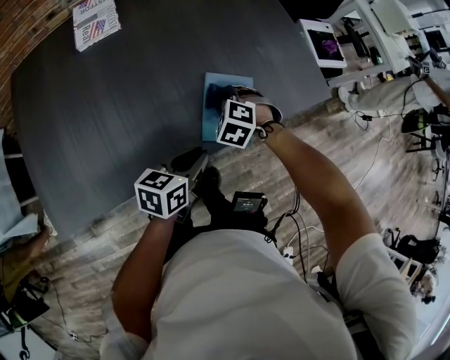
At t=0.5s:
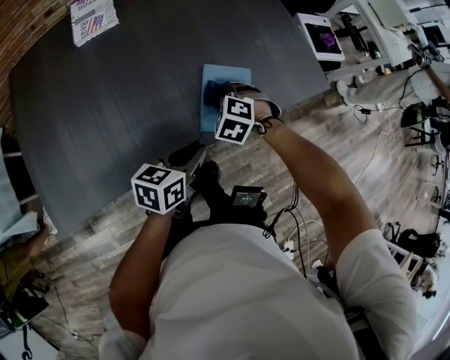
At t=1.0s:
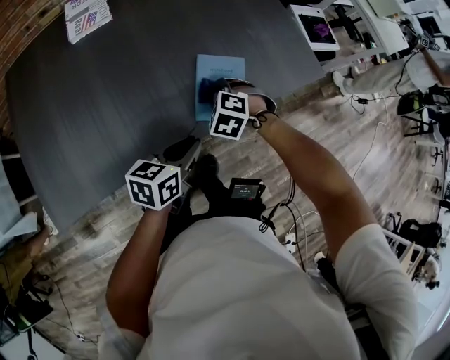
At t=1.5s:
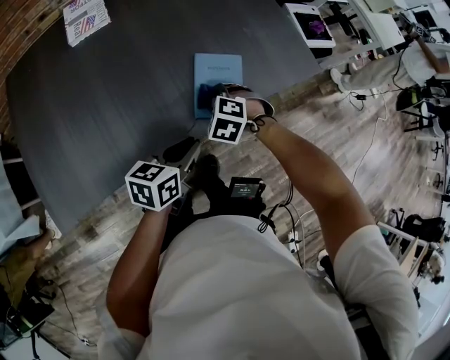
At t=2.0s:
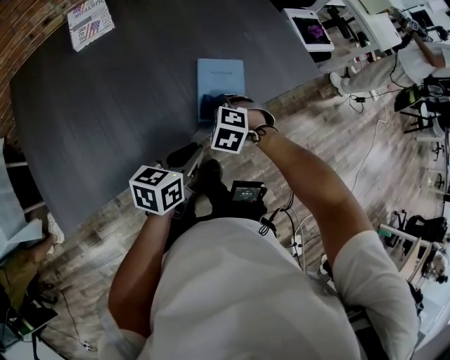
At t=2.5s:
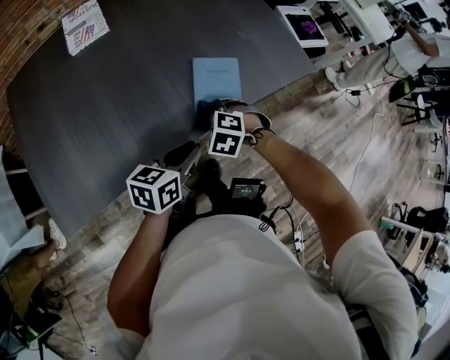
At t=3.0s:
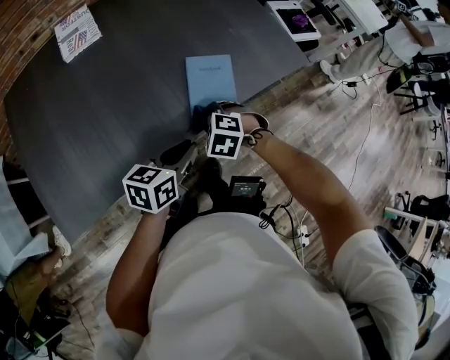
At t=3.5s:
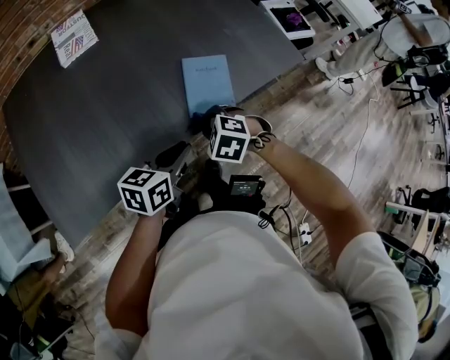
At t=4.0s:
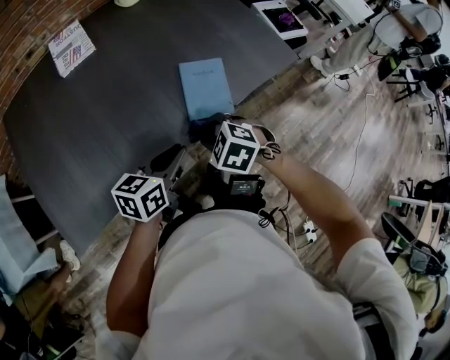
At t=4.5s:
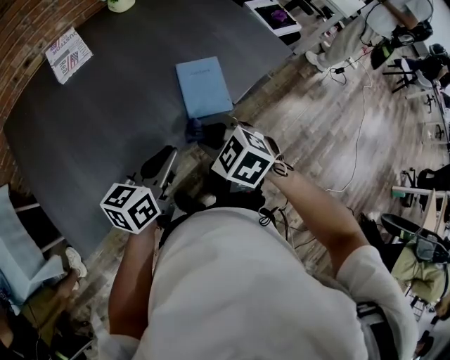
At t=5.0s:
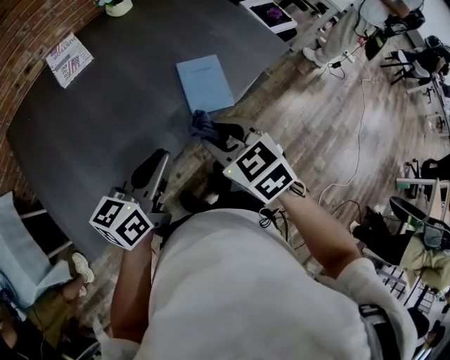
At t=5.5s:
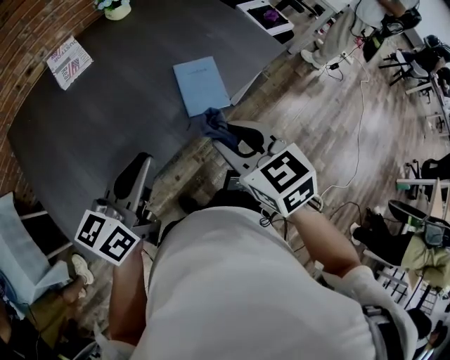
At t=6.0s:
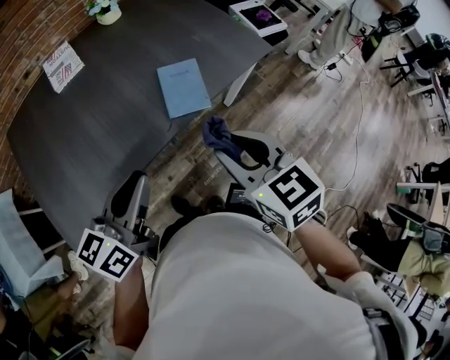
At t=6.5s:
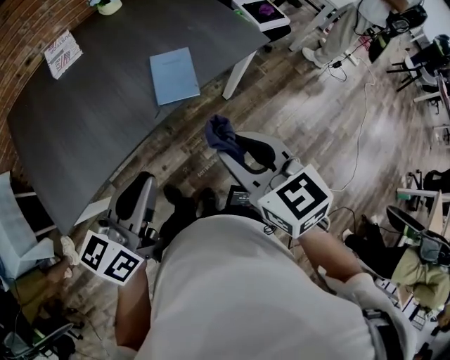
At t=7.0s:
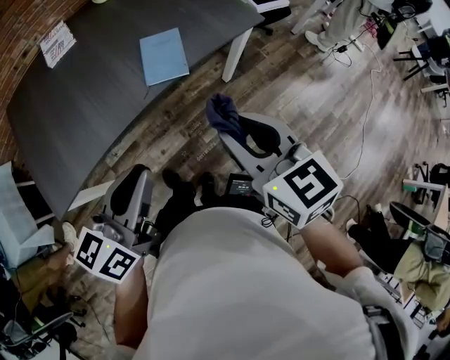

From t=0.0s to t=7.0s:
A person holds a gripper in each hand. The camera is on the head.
From t=0.0s to t=2.0s: The left gripper shifts by some 5 cm. The right gripper shifts about 10 cm backward.
From t=2.0s to t=3.5s: The right gripper moves backward, approximately 5 cm.
From t=3.5s to t=5.0s: The left gripper heads upward and to the left, covering some 15 cm. Meanwhile the right gripper is displaced upward by about 15 cm, and changes its angle by approximately 50 degrees.
From t=5.0s to t=7.0s: The right gripper shifts some 25 cm to the right, backward and upward, and swivels approximately 20 degrees. The left gripper moves backward and to the right, some 20 cm.

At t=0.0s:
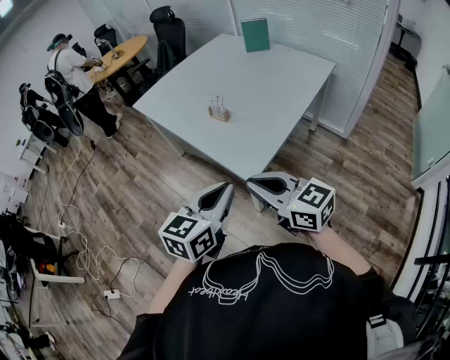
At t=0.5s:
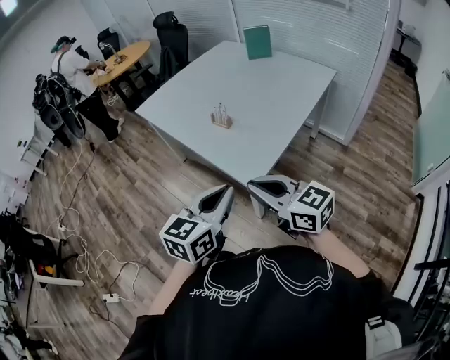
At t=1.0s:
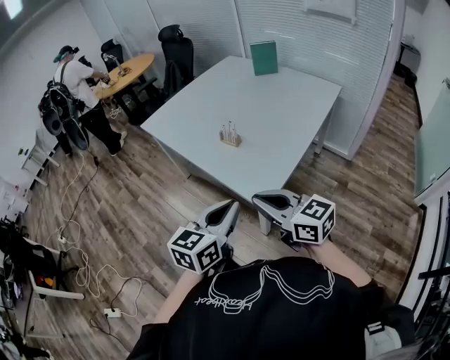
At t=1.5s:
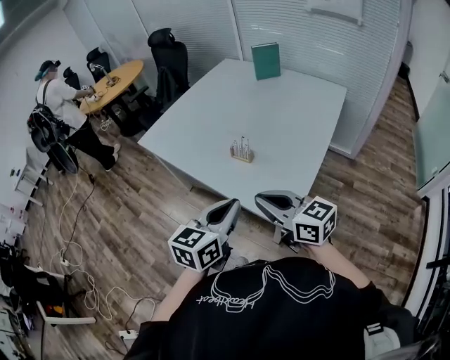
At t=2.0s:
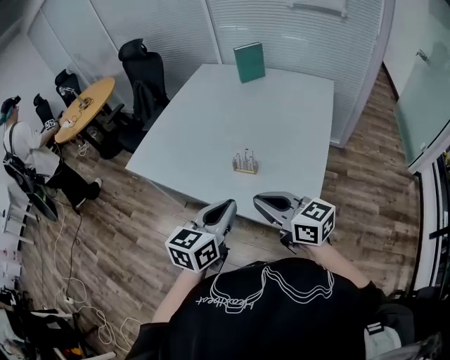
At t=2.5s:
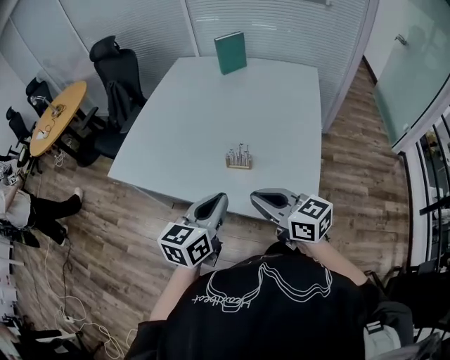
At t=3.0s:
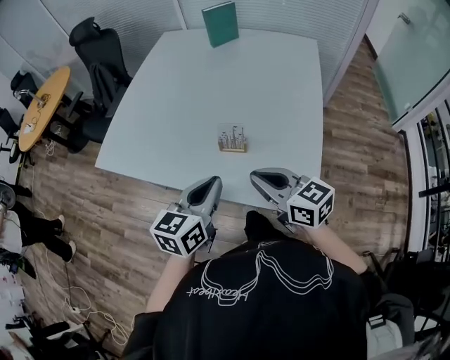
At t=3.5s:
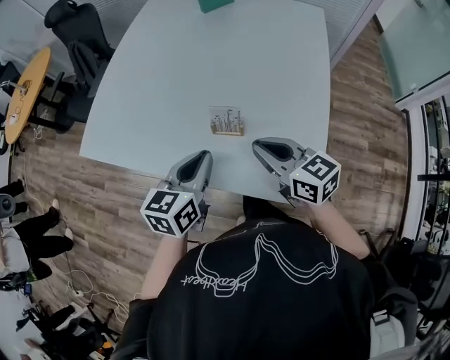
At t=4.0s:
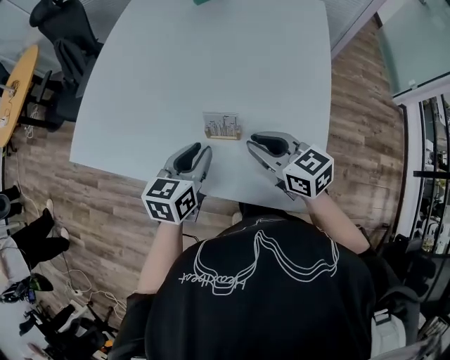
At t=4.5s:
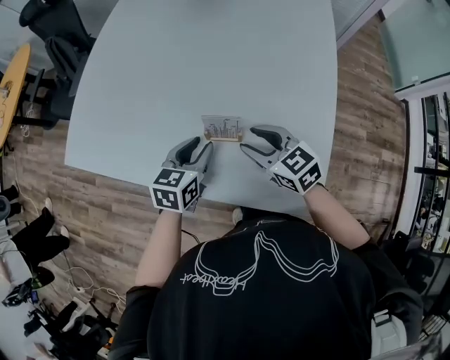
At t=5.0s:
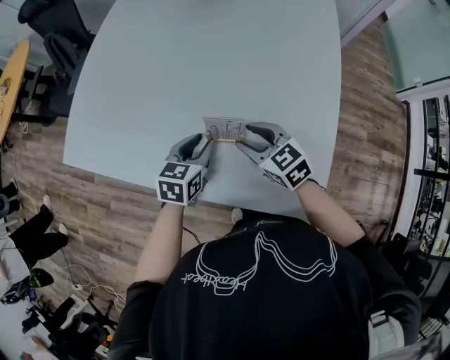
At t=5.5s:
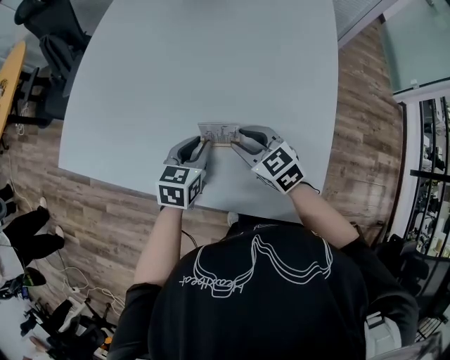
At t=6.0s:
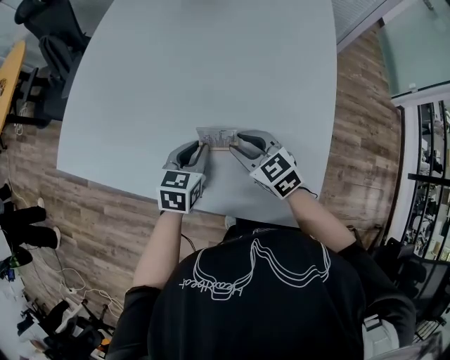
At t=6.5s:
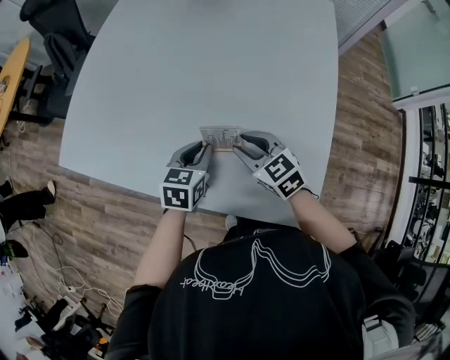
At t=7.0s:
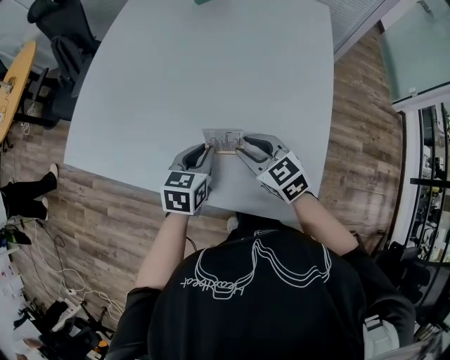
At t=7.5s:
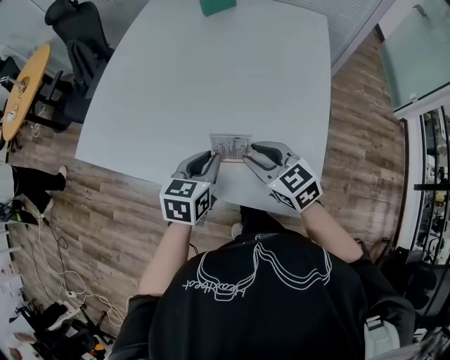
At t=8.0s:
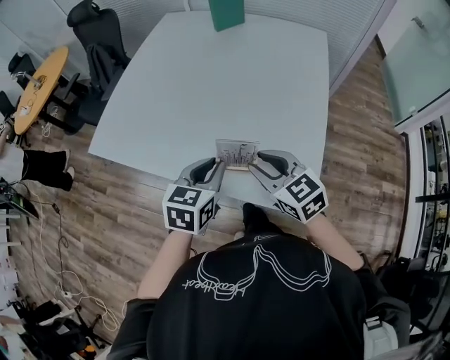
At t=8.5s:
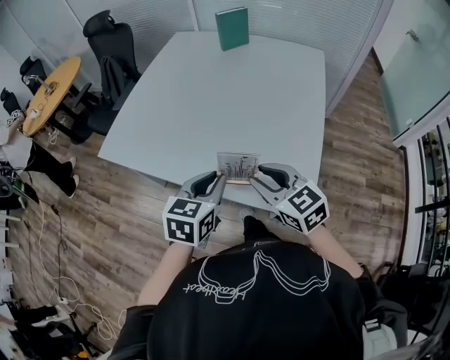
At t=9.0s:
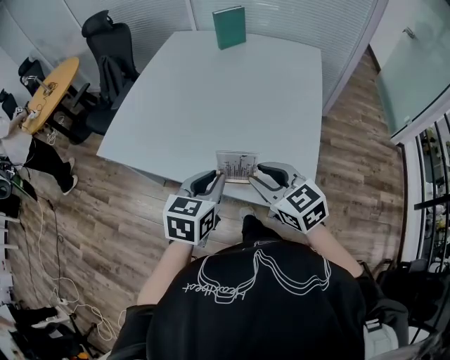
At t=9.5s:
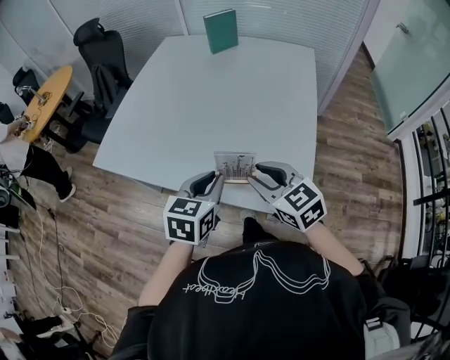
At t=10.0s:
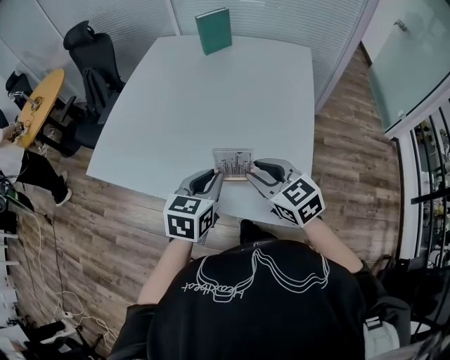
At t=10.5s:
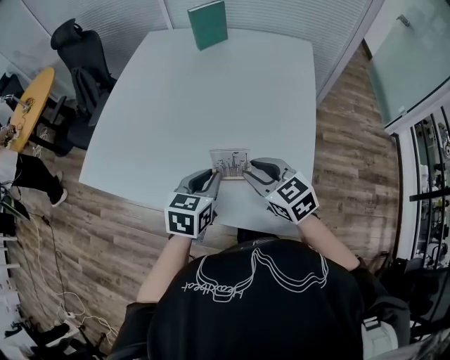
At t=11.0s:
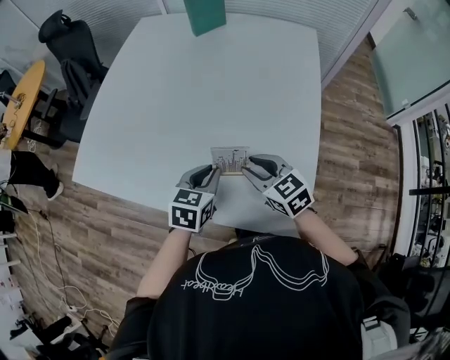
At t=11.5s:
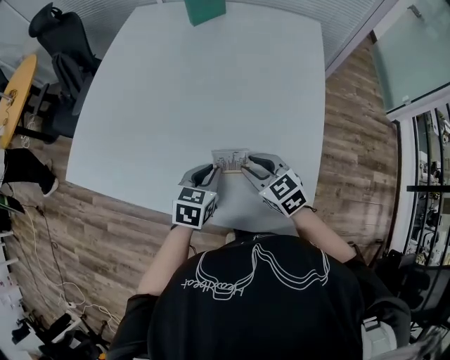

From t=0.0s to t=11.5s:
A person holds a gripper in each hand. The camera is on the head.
From t=0.0s to t=2.0s: Both grippers move forward and to the left, some 30 cm. The right gripper changes its angle by some 20 degrees.
From t=2.0s to t=4.0s: The two grippers go approximately 25 cm forward and downward. The right gripper rotates approximately 20 degrees.
From t=4.0s to t=6.0s: Both grippers travel together downward and forward, some 10 cm.
From t=6.0s to t=7.5s: Both grippers travel together upward and backward, approximately 10 cm.
From t=7.5s to t=9.5s: Both grippers move backward and upward, approximately 15 cm.
From t=9.5s to t=11.5s: The two grippers go about 20 cm downward and forward.

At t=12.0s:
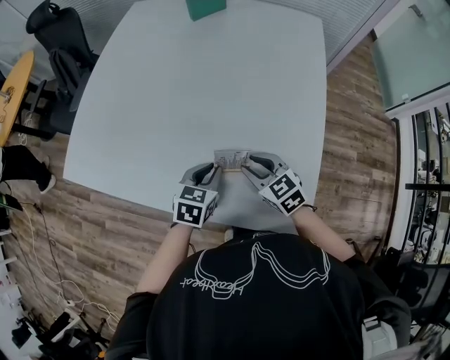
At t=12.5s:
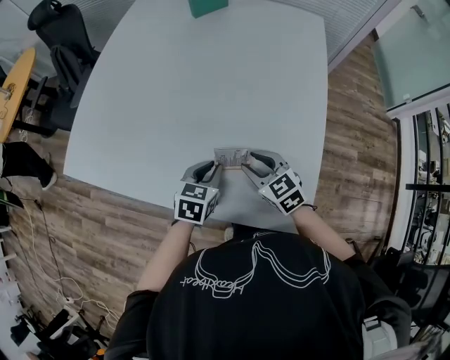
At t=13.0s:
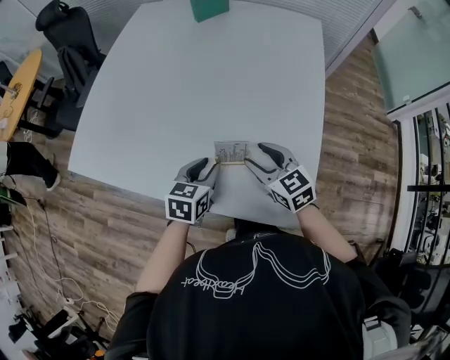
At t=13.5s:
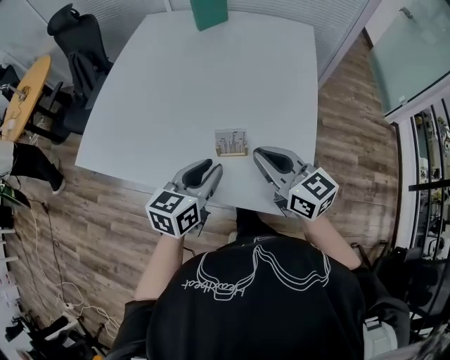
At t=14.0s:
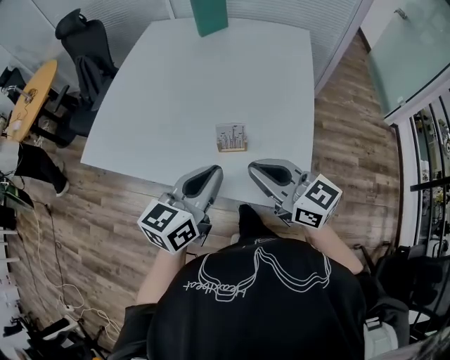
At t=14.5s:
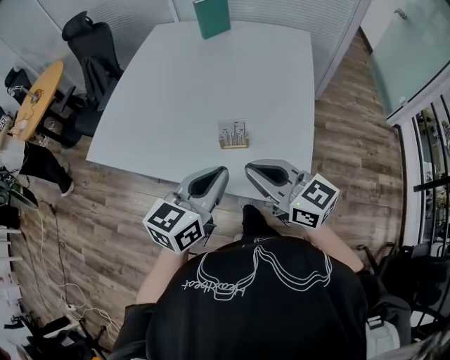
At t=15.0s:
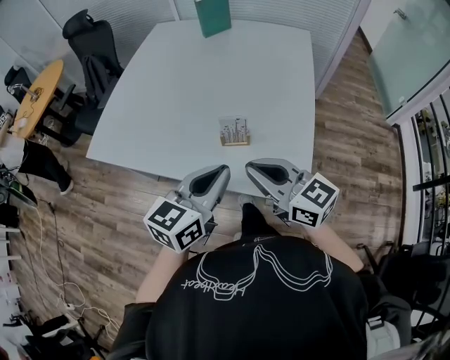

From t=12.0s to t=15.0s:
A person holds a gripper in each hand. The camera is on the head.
From t=12.0s to t=13.5s: Both grippers travel together upward and backward, about 15 cm. The left gripper changes its angle by about 20 degrees; the right gripper swivels roughly 30 degrees, and closes.
From t=13.5s to t=15.0s: The left gripper heads backward and upward, covering about 15 cm, and closes up. Meanwhile the right gripper travels backward by some 10 cm.

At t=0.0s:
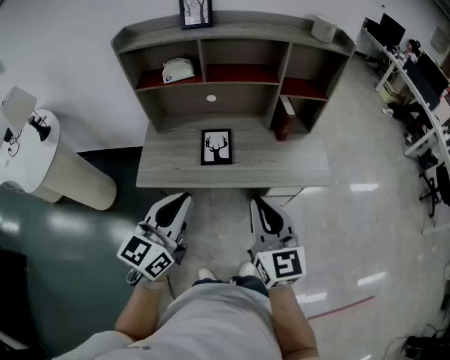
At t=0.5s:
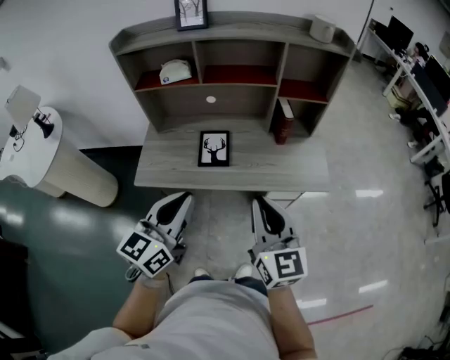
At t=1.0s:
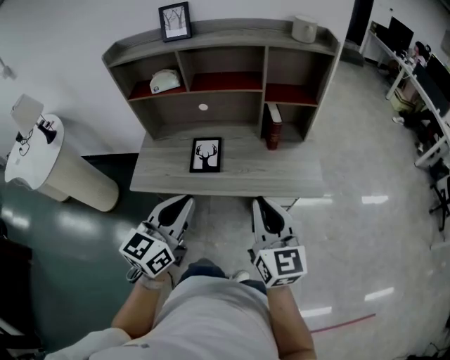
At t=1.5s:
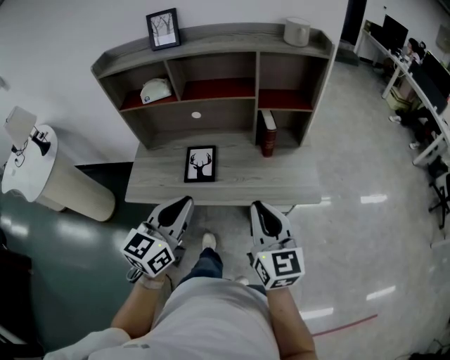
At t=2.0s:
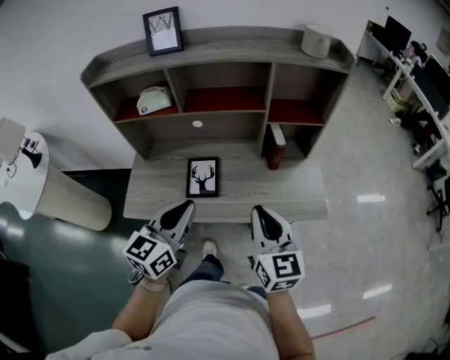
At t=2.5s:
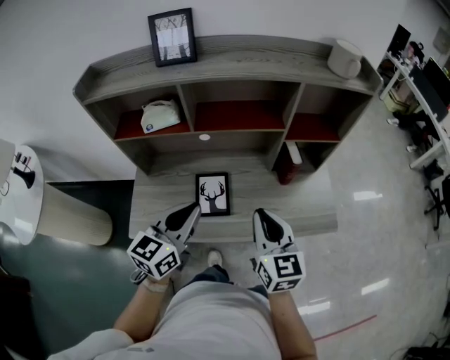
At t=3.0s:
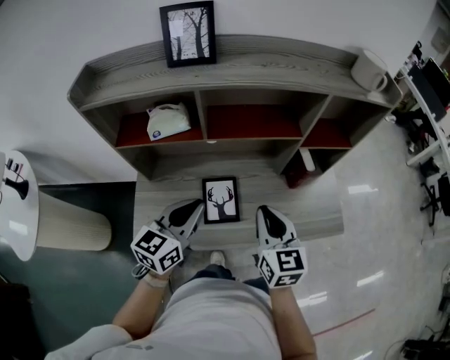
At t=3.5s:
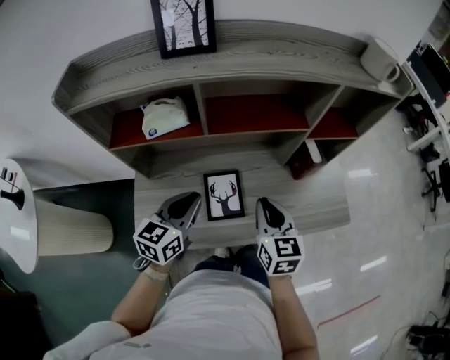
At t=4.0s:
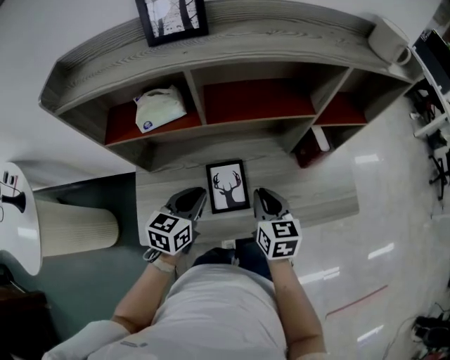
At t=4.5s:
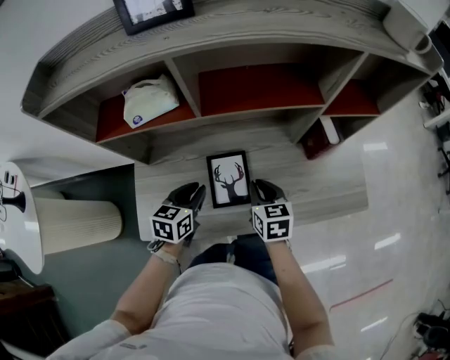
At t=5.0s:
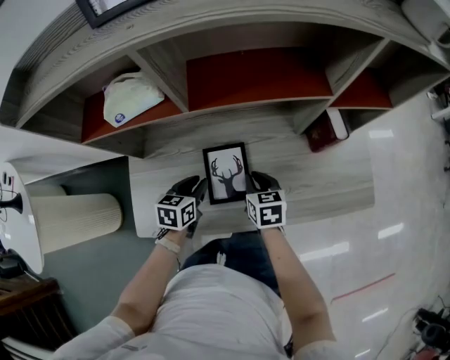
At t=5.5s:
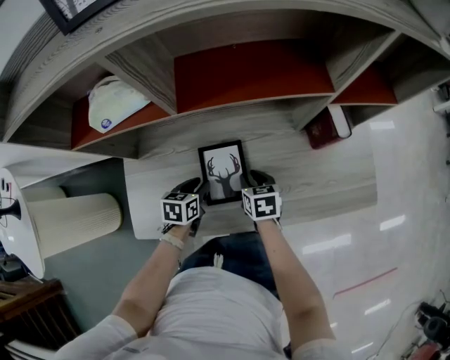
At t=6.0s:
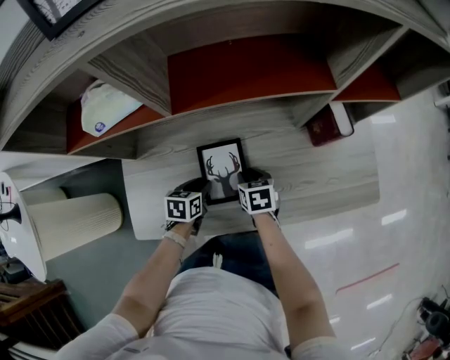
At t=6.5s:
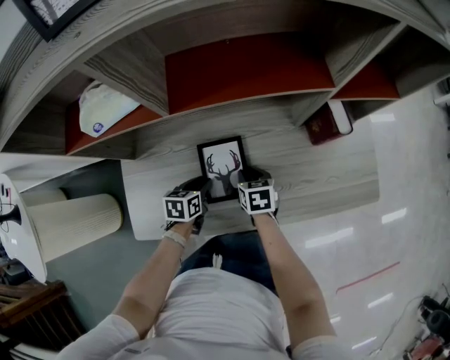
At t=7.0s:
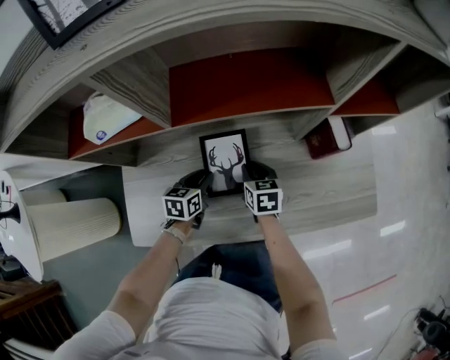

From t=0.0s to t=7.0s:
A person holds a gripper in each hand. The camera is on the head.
From t=0.0s to t=2.0s: The two grippers go about 20 cm forward and to the right.
From t=2.0s to t=3.5s: The left gripper is displaced forward, to the left and downward by some 25 cm. The right gripper shifts some 25 cm to the left, forward and downward.
From t=3.5s to t=5.0s: The grippers both shift downward by about 25 cm. The left gripper changes its angle by roughly 30 degrees, while the right gripper turns by roughly 20 degrees.
From t=5.0s to t=7.0s: The right gripper travels forward and downward by some 10 cm. The left gripper travels downward and forward by some 10 cm.
